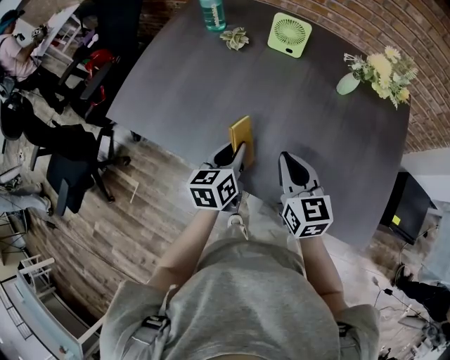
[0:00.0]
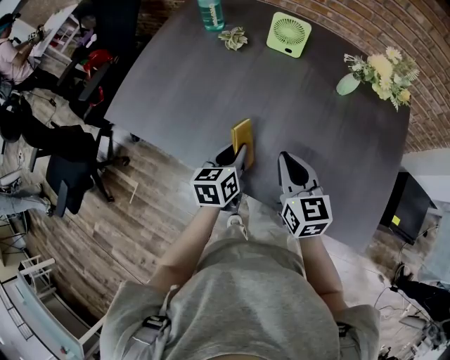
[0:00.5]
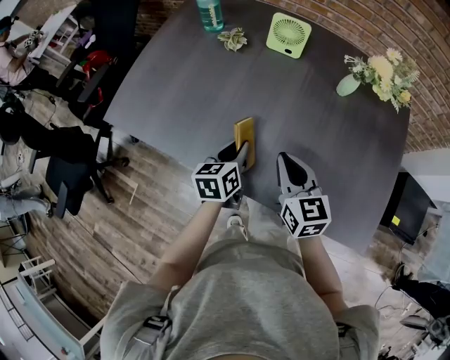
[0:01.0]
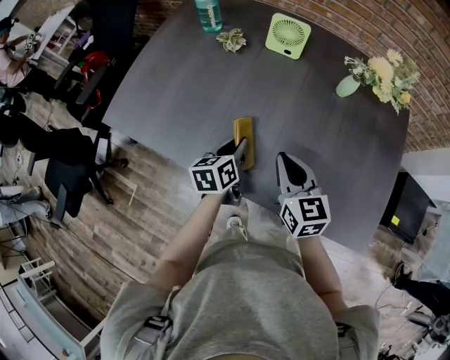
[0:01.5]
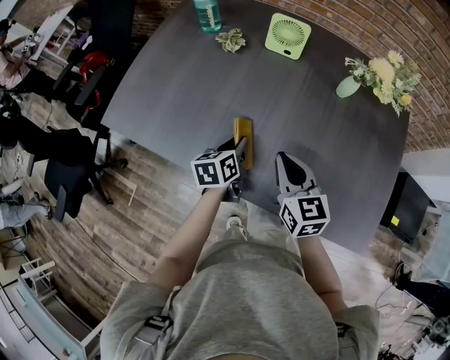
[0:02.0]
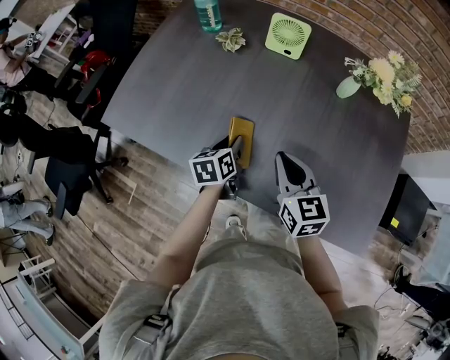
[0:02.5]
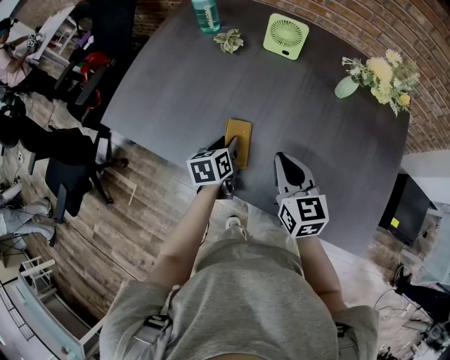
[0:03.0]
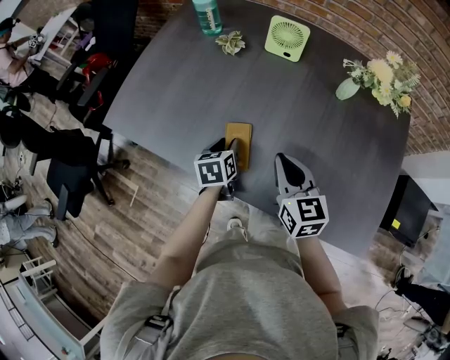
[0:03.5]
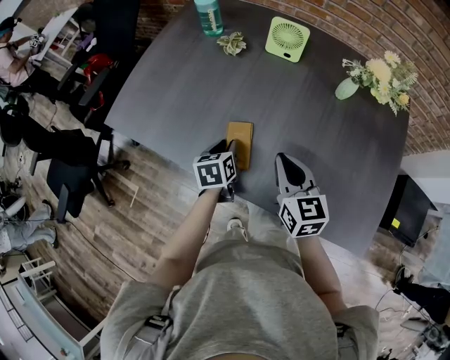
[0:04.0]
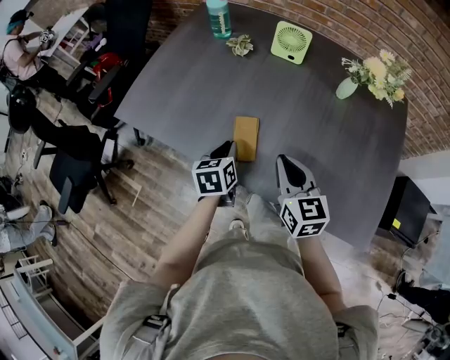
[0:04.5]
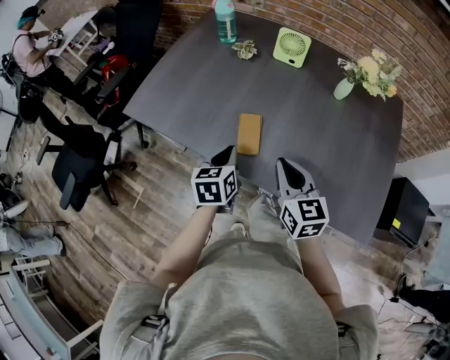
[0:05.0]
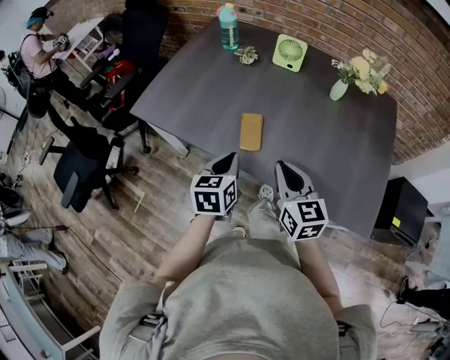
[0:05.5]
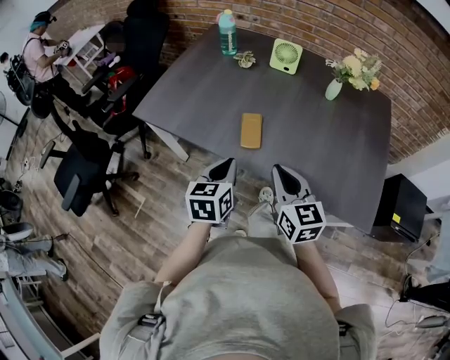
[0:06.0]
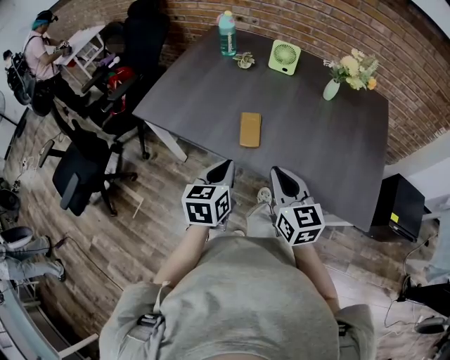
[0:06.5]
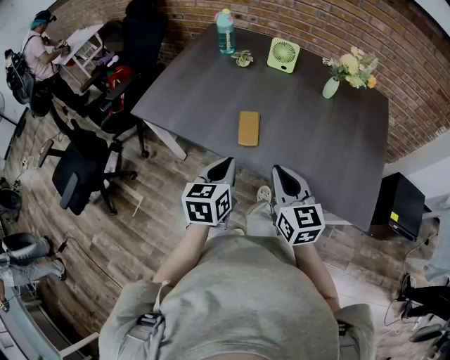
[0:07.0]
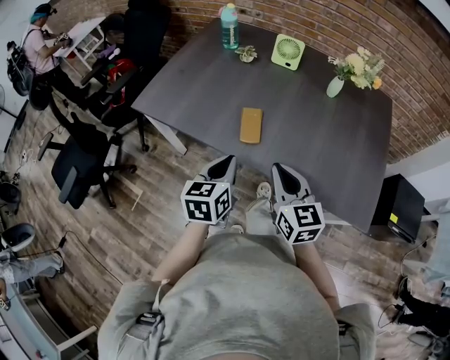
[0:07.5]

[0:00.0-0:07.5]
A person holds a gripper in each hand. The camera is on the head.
0:00.0 to 0:02.0: The left gripper goes about 10 cm downward and forward.
0:02.0 to 0:04.0: There are only small adjustments of the grippers.
0:04.0 to 0:05.5: The left gripper goes roughly 20 cm backward and upward, and closes its fingers, while the right gripper is displaced backward by approximately 15 cm.
0:05.5 to 0:07.5: The left gripper goes some 5 cm backward.

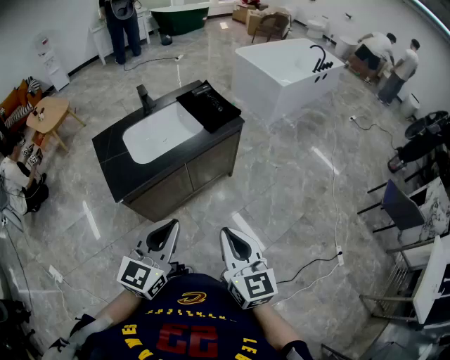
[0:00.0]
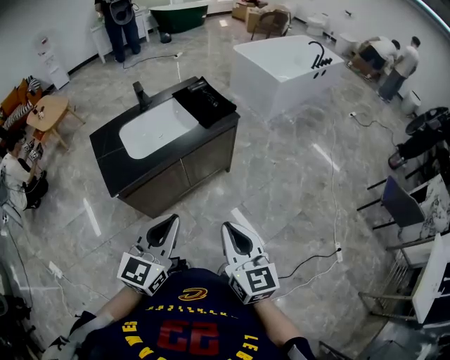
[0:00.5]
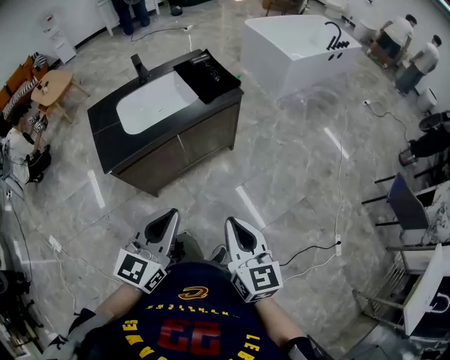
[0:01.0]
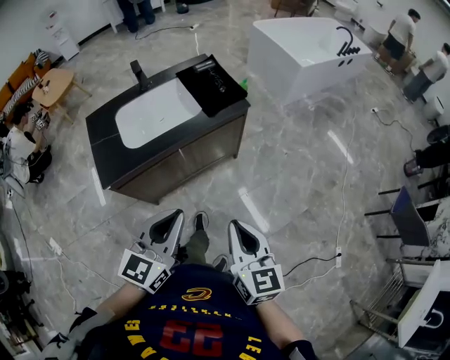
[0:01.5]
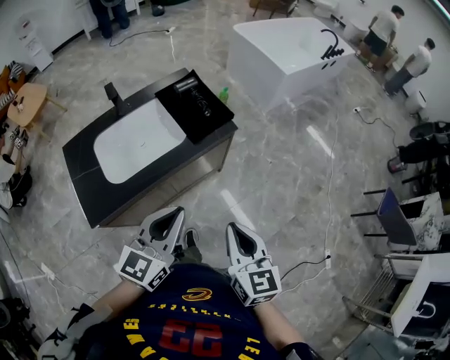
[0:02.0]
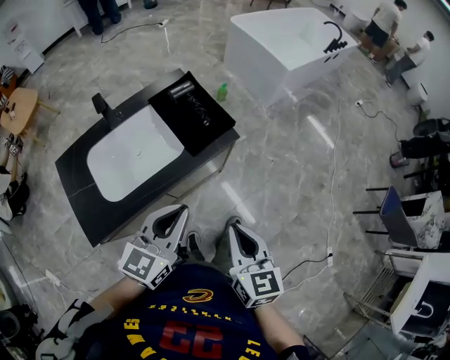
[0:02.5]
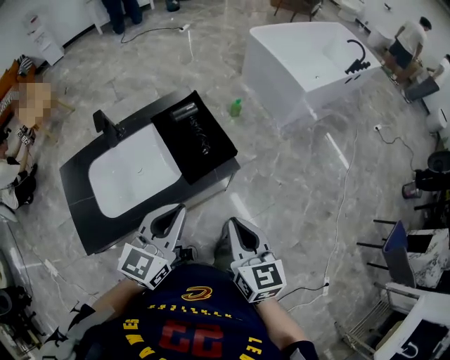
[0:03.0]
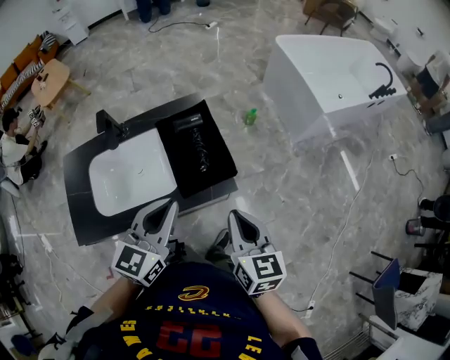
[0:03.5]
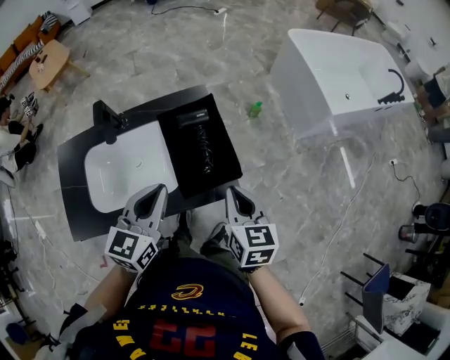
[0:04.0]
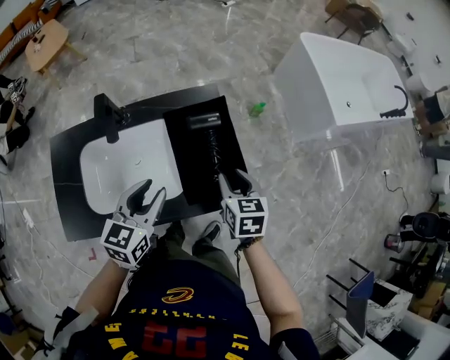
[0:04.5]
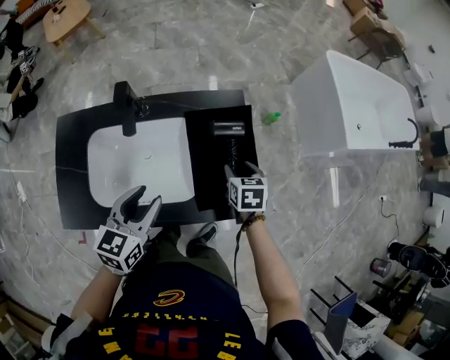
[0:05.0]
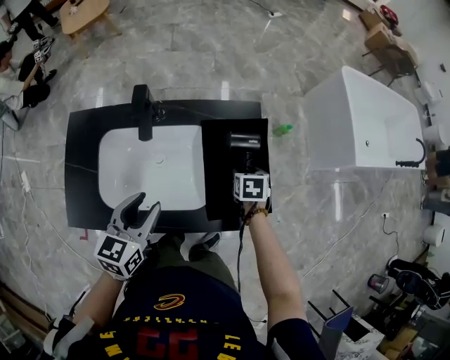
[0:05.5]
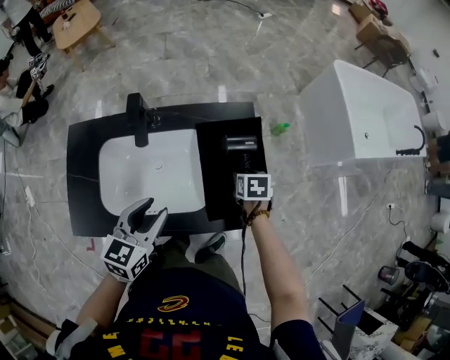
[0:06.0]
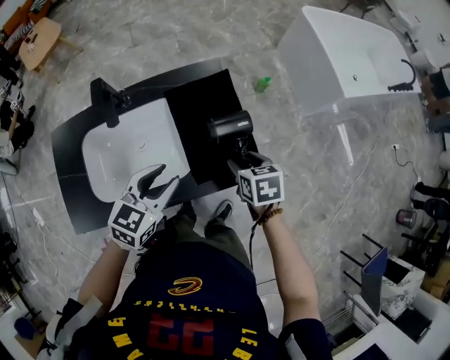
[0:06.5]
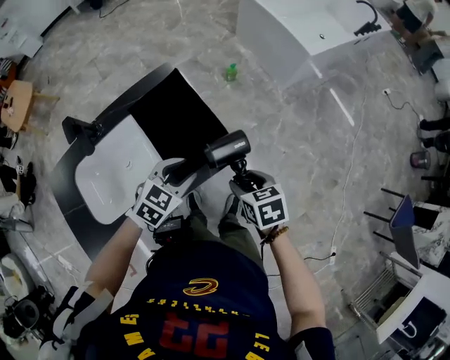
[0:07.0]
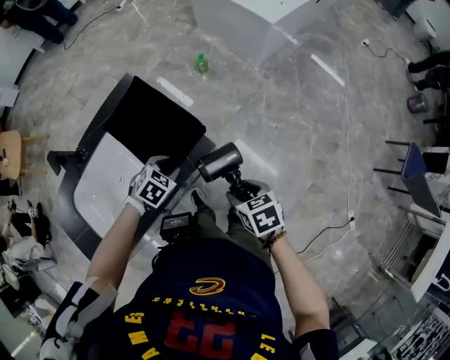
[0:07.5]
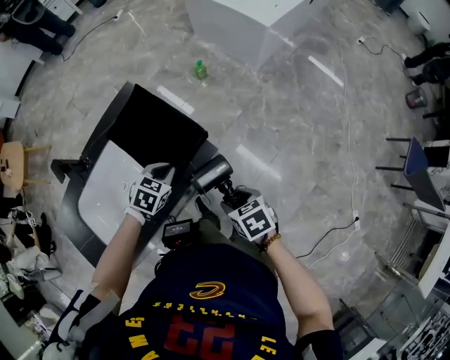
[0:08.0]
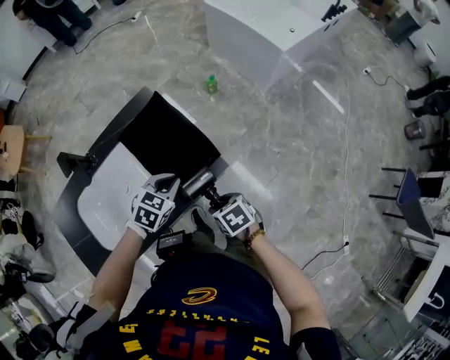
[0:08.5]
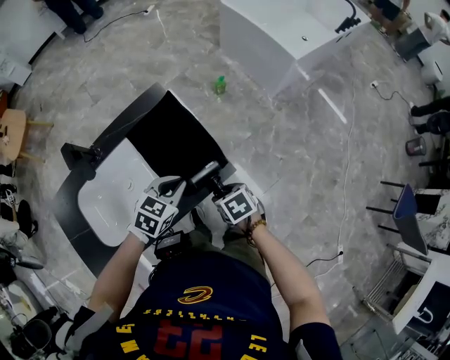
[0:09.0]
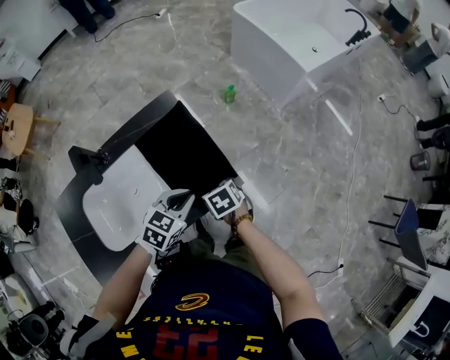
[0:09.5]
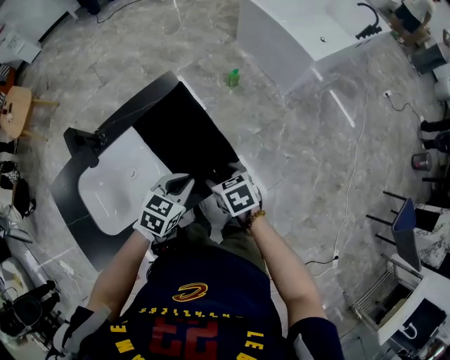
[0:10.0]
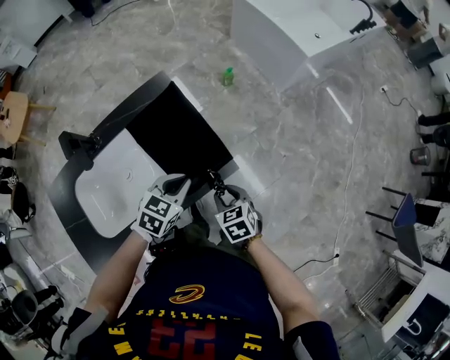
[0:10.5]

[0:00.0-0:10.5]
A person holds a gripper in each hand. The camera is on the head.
0:00.0 to 0:02.0: Both grippers move forward, roughly 25 cm.
0:02.0 to 0:04.0: Both grippers travel together forward, some 40 cm. The right gripper changes its angle by some 20 degrees; the left gripper rotates roughly 30 degrees.
0:04.0 to 0:06.5: The right gripper heads downward and forward, covering approximately 15 cm, changes its angle by about 30 degrees, and opens, while the left gripper heads downward, covering approximately 10 cm, goes to the left and returns, about 15 cm each way, and opens its fingers.
0:06.5 to 0:08.5: The left gripper is displaced to the right and downward by approximately 15 cm, changes its angle by some 30 degrees, and closes; the right gripper travels backward and downward by some 15 cm.

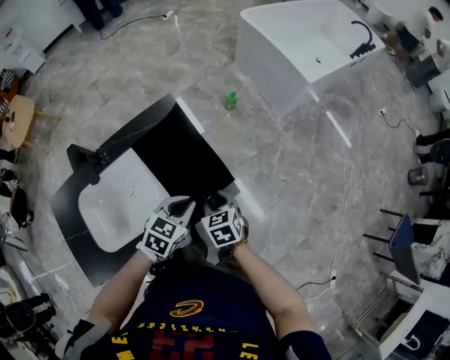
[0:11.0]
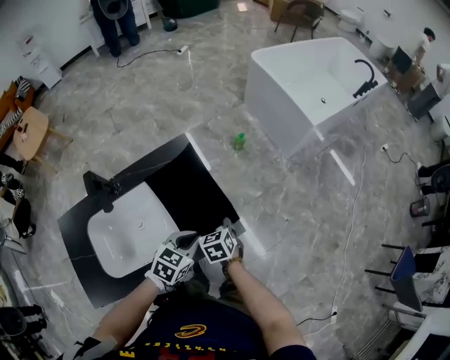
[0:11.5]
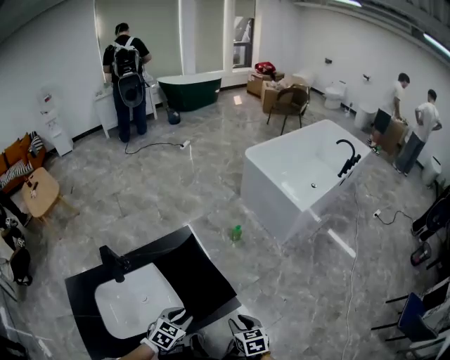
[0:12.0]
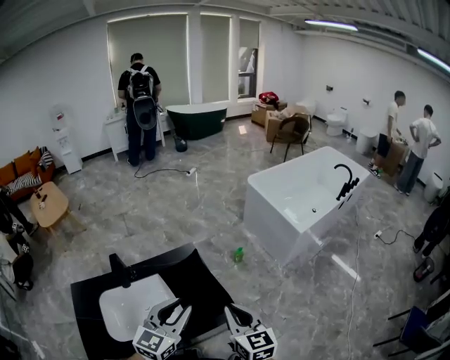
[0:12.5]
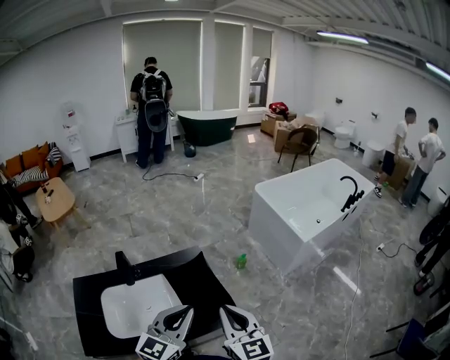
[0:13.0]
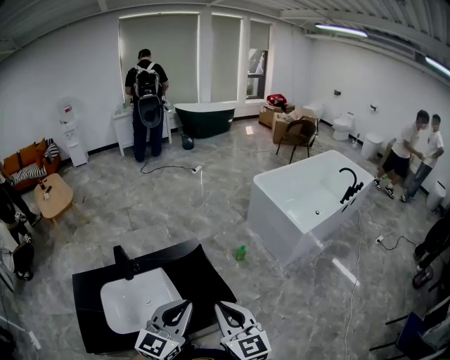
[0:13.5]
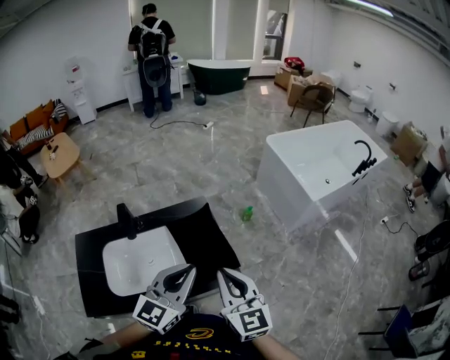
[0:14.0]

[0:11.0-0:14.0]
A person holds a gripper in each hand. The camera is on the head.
0:11.0 to 0:12.5: The grippers both shift upward by approximately 30 cm. The right gripper tilts its fingers about 30 degrees upward, while the left gripper angles its fingers upward, by some 30 degrees, and opens up.
0:12.5 to 0:14.0: The left gripper closes. The right gripper ends up roughly 5 cm from where it was.

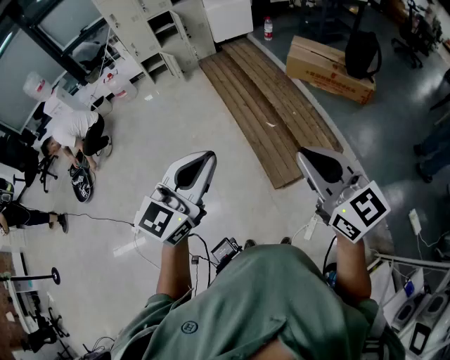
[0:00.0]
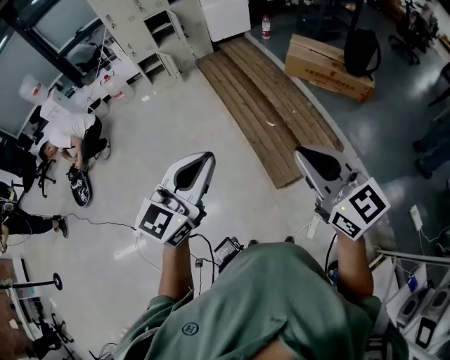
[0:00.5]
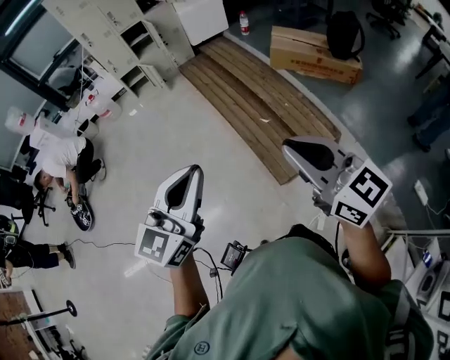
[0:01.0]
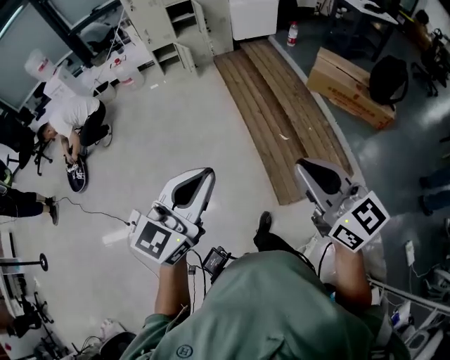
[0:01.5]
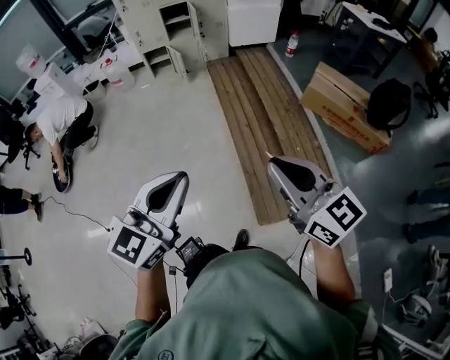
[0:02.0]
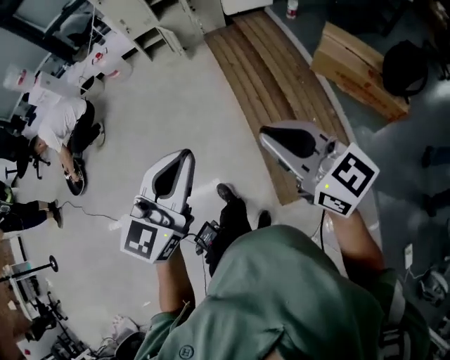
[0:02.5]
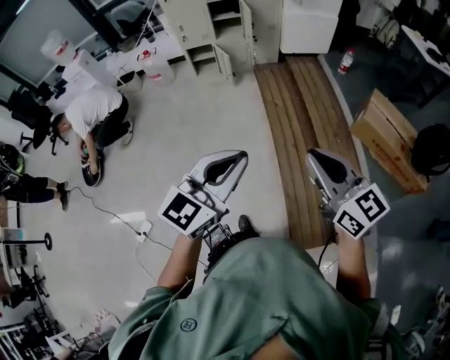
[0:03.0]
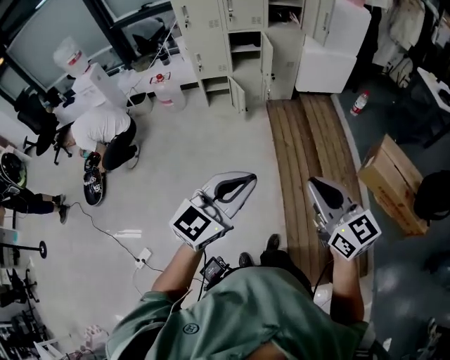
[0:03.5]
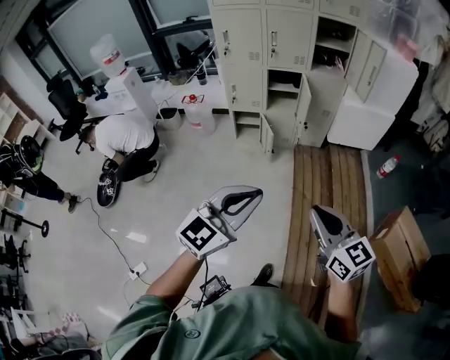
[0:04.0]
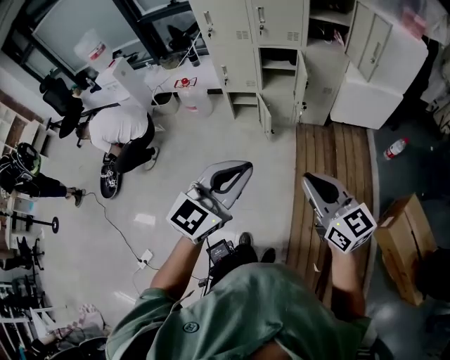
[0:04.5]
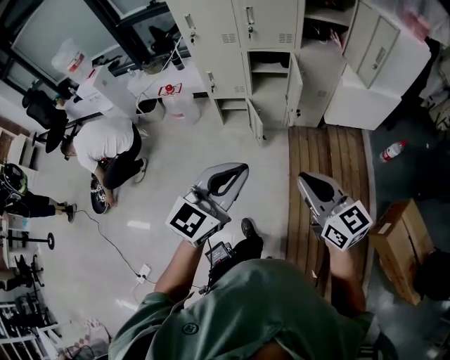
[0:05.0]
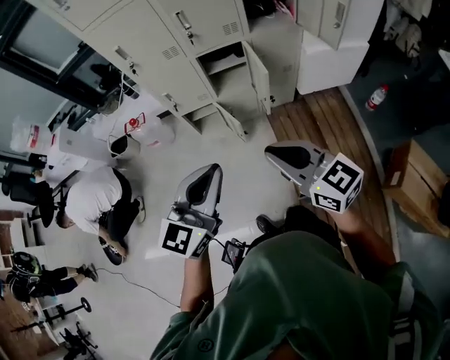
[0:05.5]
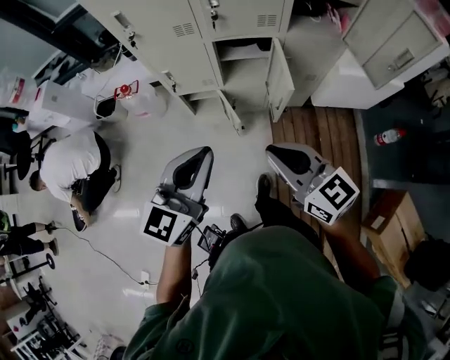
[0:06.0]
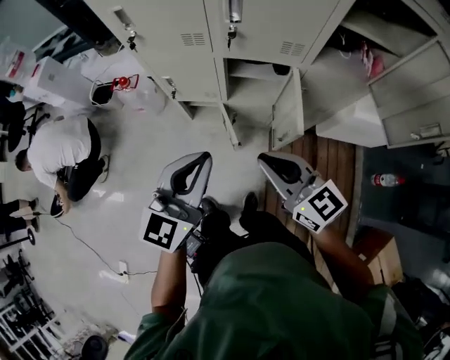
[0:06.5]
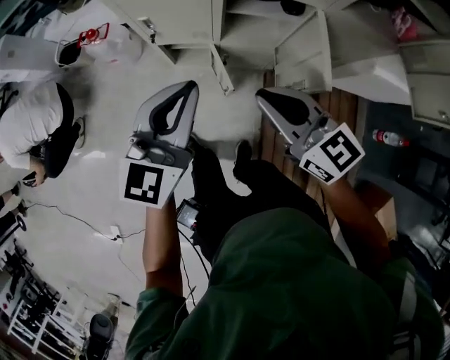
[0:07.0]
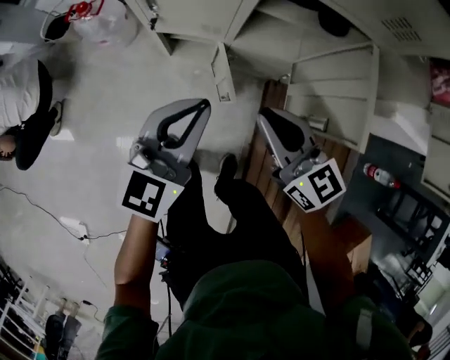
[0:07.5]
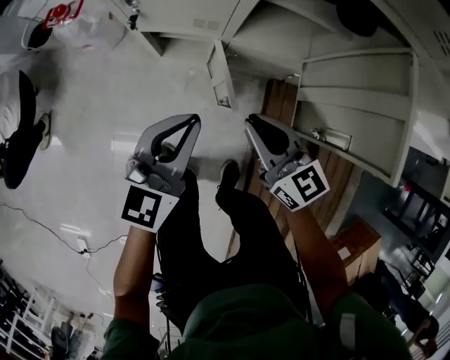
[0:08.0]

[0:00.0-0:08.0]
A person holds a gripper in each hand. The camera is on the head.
0:00.0 to 0:02.0: The two grippers go some 25 cm forward.
0:02.0 to 0:04.0: The pair of grippers is taken forward, about 60 cm.
0:04.0 to 0:06.0: The two grippers travel together, forward, approximately 50 cm.
0:06.0 to 0:08.0: The two grippers go approximately 50 cm downward and forward.
